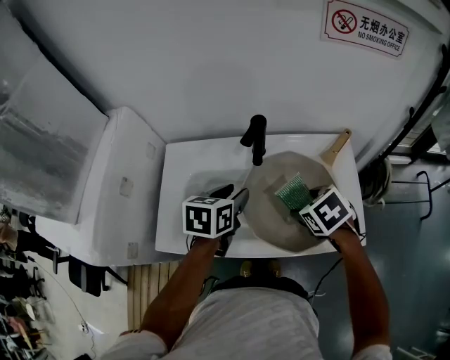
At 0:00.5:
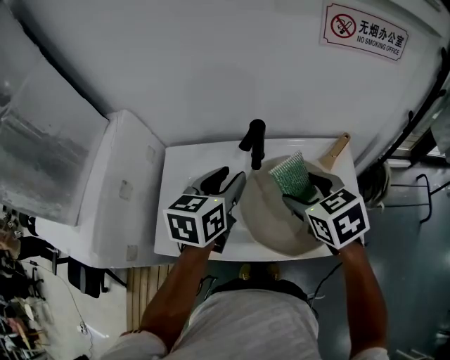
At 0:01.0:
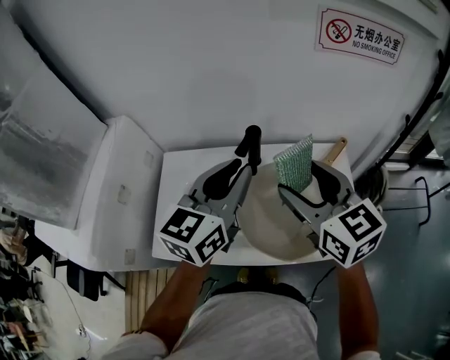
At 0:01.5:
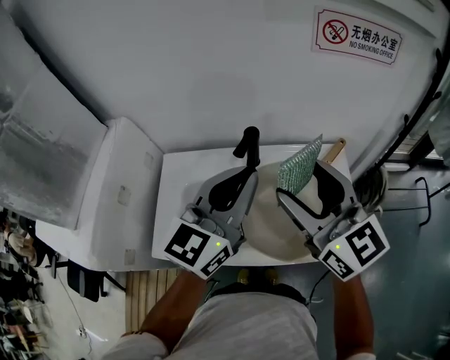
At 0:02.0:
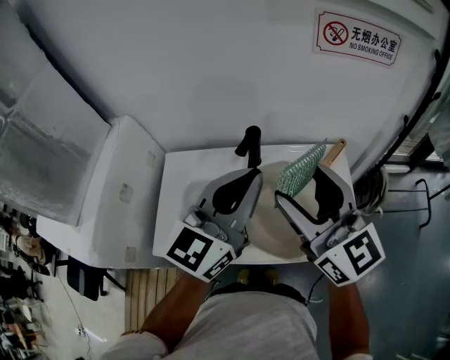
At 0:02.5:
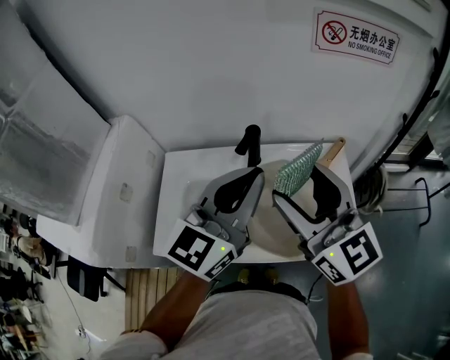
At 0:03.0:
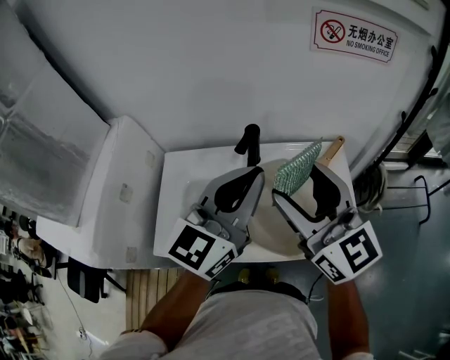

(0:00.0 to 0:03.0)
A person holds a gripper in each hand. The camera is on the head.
0:00.0 - 0:01.5: Both grippers travel together upward, approximately 25 cm. The right gripper tilts its fingers roughly 70 degrees upward; the left gripper points its fingers some 40 degrees further upward, and closes.
0:01.5 - 0:03.0: The grippers move only a little.

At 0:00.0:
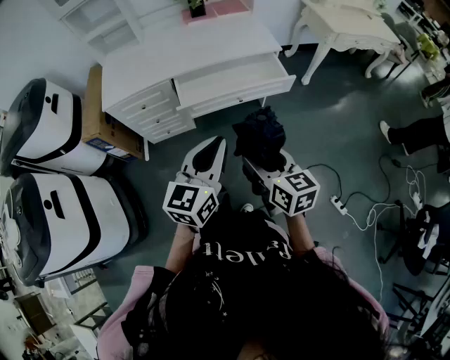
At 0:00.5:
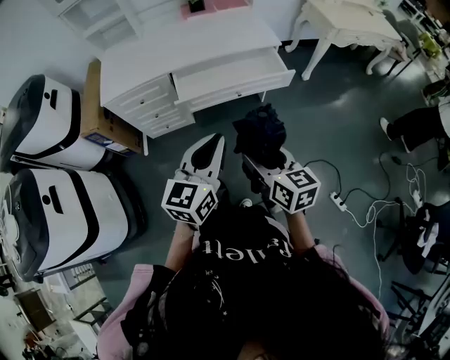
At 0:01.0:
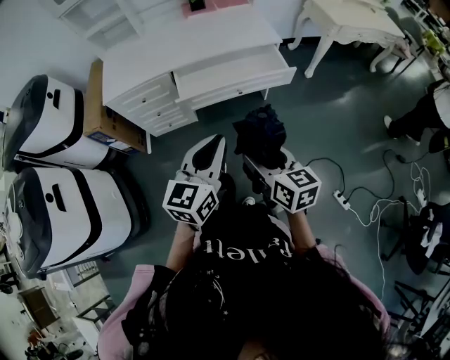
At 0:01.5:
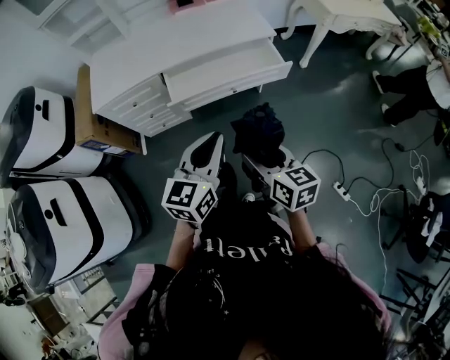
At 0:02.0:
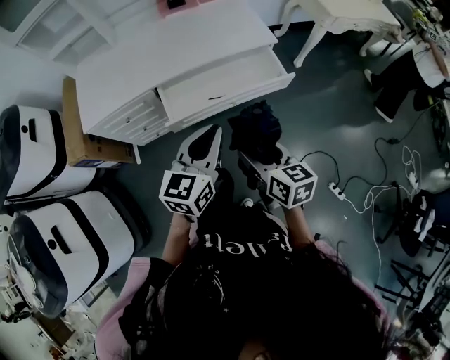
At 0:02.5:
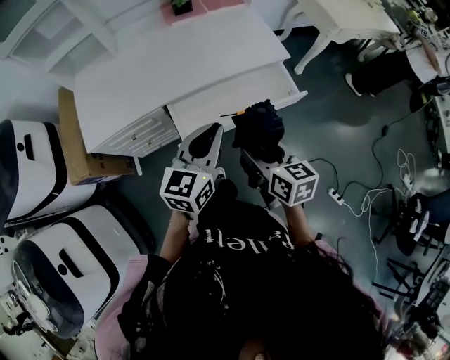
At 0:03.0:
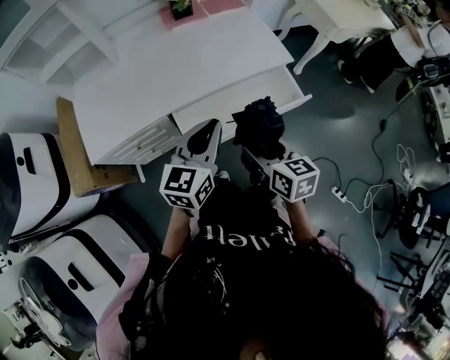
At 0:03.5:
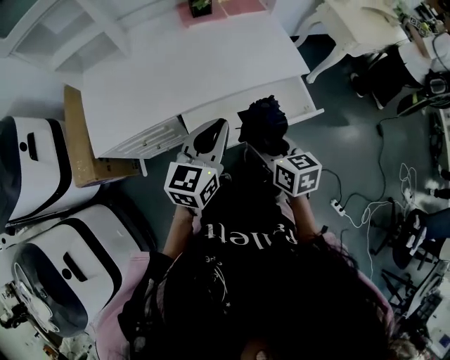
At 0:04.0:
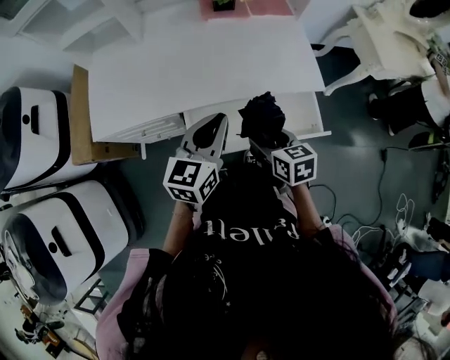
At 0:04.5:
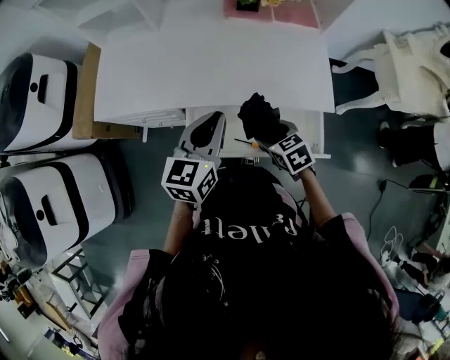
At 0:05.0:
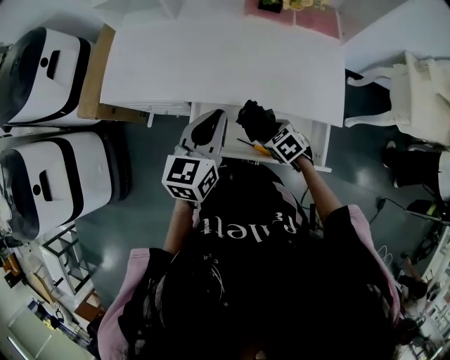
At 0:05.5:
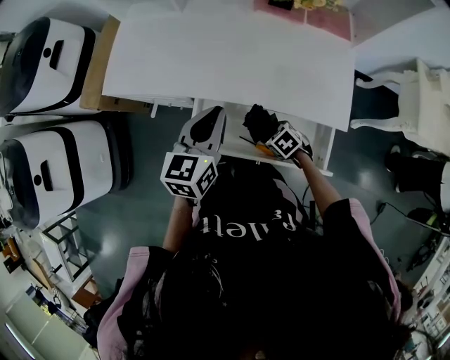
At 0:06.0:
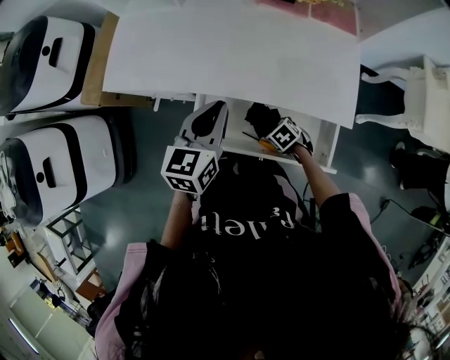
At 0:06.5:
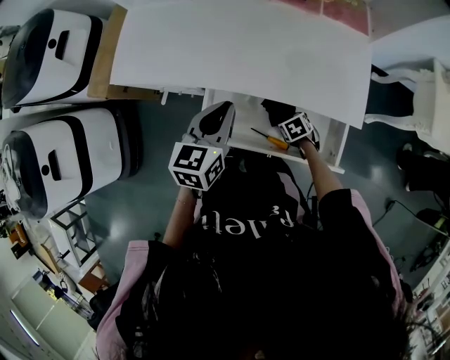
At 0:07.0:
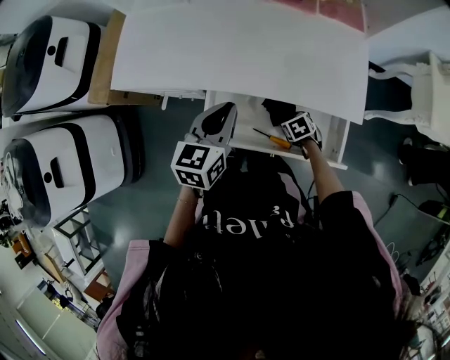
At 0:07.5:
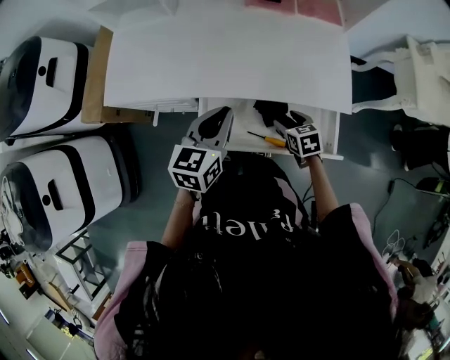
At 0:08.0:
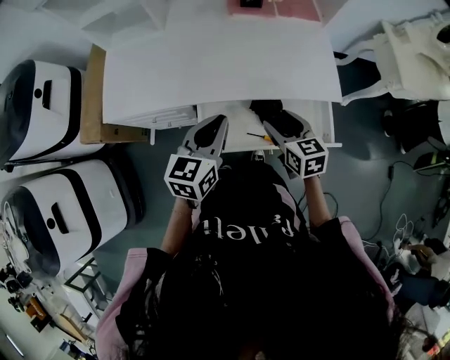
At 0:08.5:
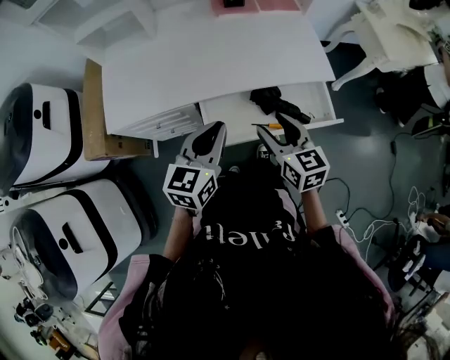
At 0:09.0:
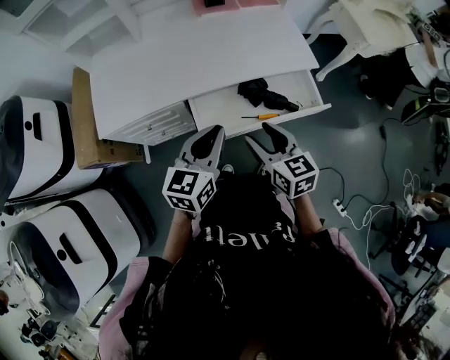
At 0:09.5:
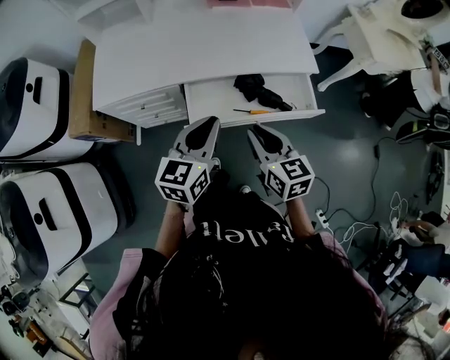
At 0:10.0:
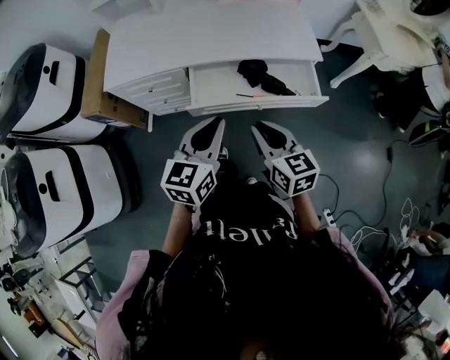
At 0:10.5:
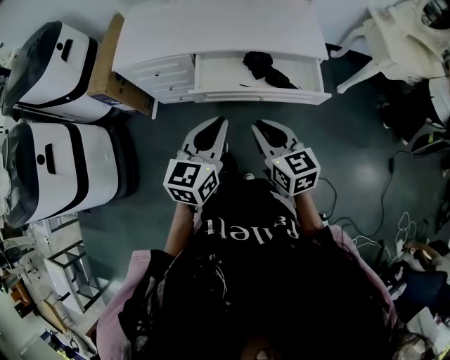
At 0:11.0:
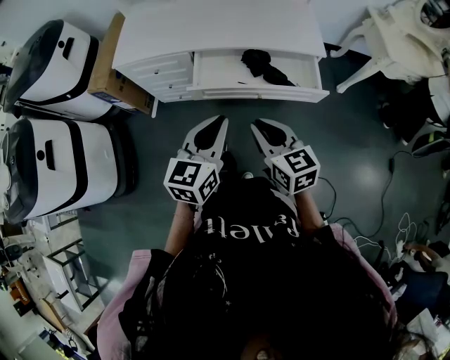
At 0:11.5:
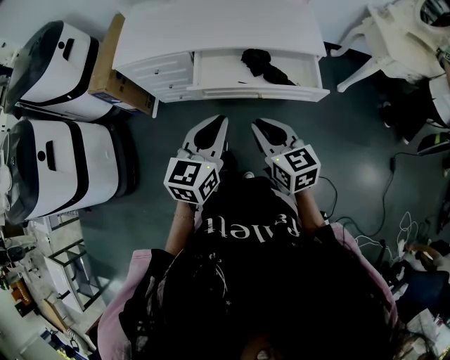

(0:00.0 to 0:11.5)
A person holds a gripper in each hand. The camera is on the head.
0:00.0 - 0:02.0: Both grippers travel together forward, approximately 15 cm.
0:02.0 - 0:04.0: The two grippers go roughly 25 cm forward. The right gripper swivels some 20 degrees.
0:04.0 - 0:06.0: The left gripper ends up approximately 10 cm from where it was, and changes its angle by roughly 20 degrees, while the right gripper shifts about 25 cm downward, and points its fingers approximately 30 degrees further downward.
0:06.0 - 0:07.5: The right gripper moves upward, about 10 cm, and turns by some 40 degrees.
0:07.5 - 0:09.5: The right gripper travels backward, upward and to the left by roughly 35 cm, changes its angle by some 30 degrees, and closes. The left gripper shifts some 20 cm backward.
0:09.5 - 0:11.5: The grippers both shift backward by about 15 cm.

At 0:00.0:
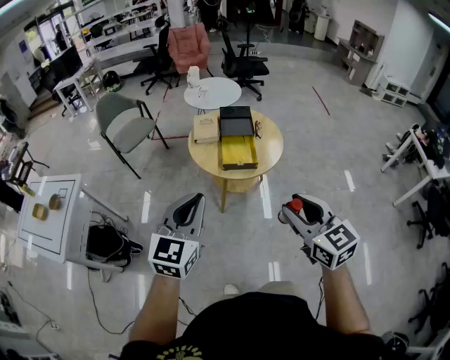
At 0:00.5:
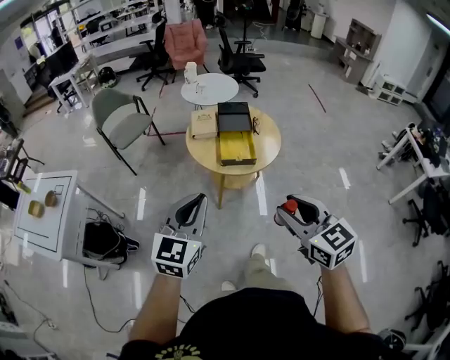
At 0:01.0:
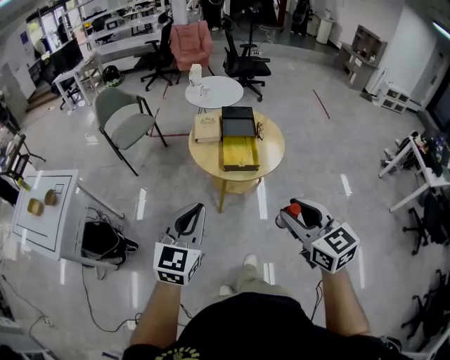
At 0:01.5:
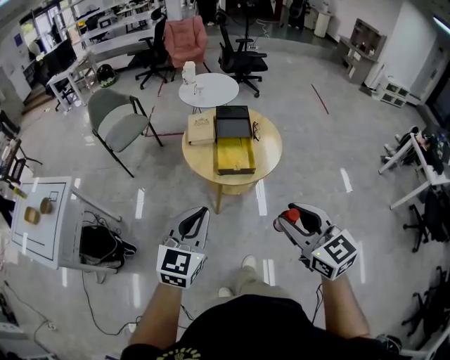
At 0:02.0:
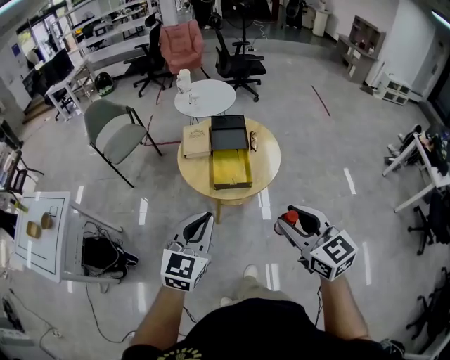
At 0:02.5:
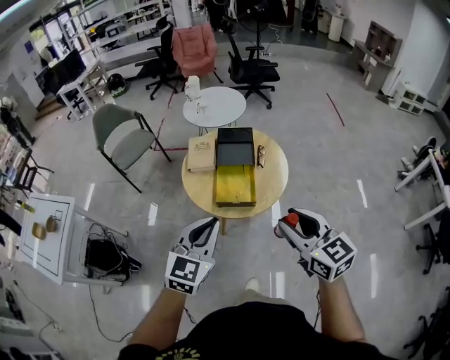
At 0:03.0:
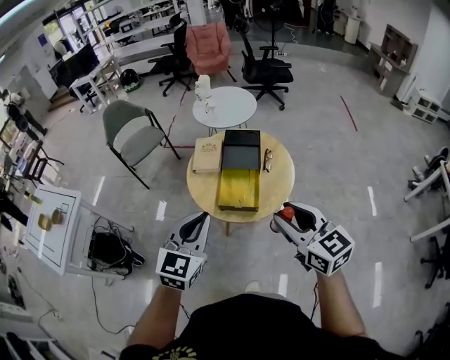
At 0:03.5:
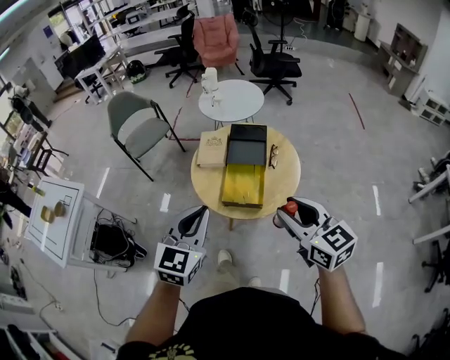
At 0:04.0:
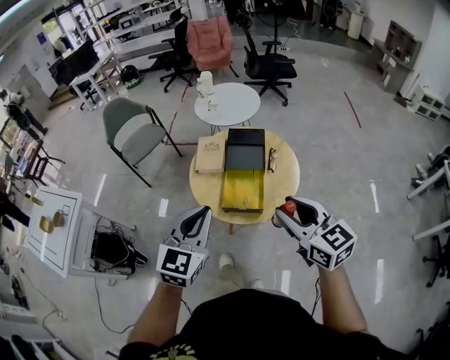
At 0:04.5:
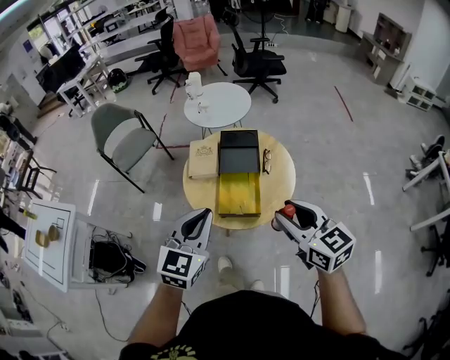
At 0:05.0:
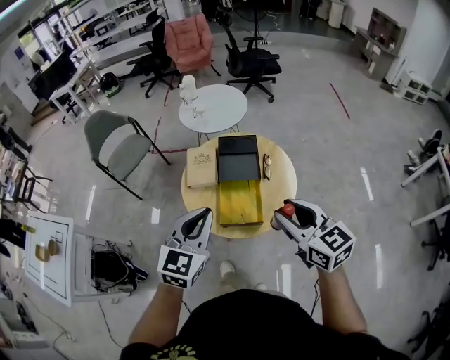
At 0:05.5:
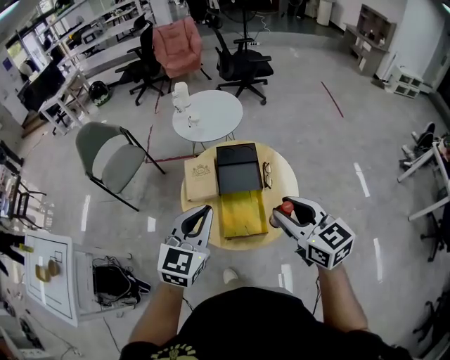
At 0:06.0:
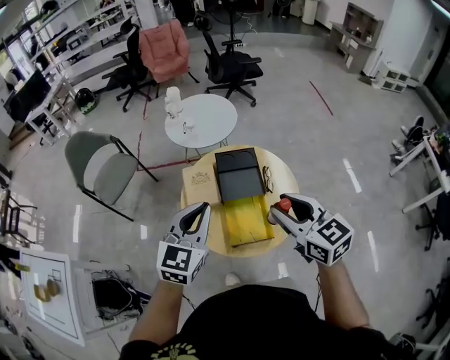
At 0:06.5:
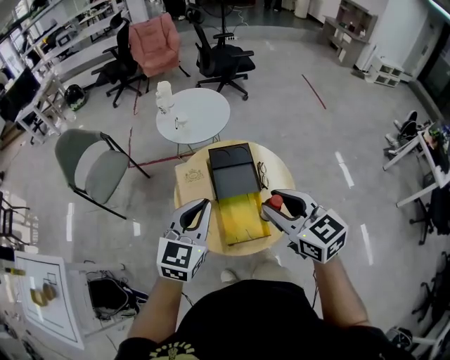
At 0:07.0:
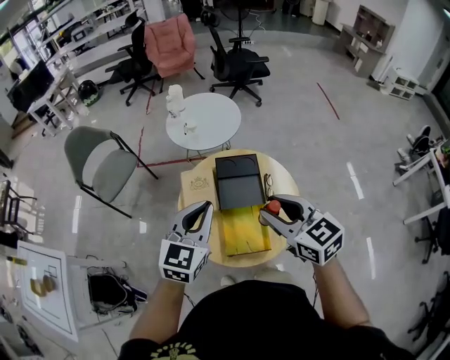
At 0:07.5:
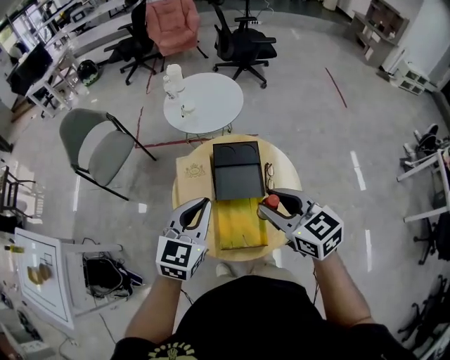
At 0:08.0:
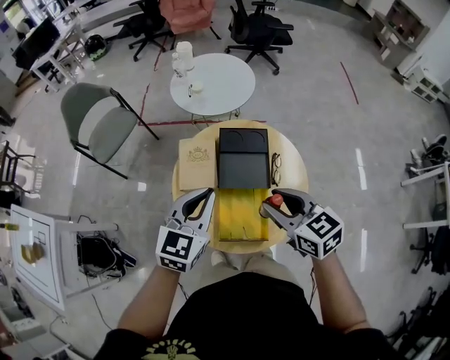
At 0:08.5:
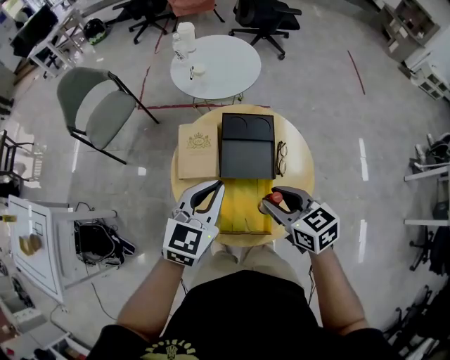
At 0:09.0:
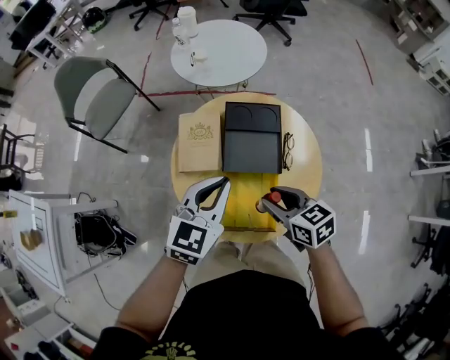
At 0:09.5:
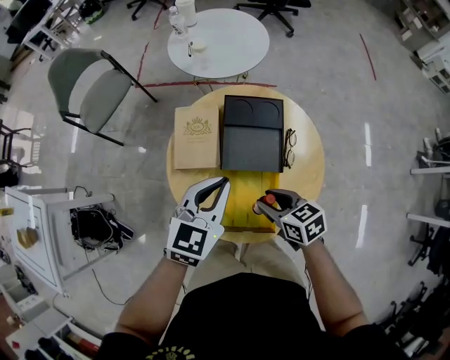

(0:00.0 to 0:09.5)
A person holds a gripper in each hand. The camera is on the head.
0:00.0 - 0:02.0: The right gripper shifts roughly 10 cm forward. The left gripper is displaced forward, to the right and downward by some 15 cm.
0:02.0 - 0:04.0: The two grippers go approximately 15 cm forward.
0:04.0 - 0:05.5: The two grippers go roughly 15 cm forward.
0:05.5 - 0:07.5: Both grippers move forward and downward, roughly 15 cm.
0:07.5 - 0:09.5: The left gripper goes roughly 15 cm downward; the right gripper travels downward by roughly 25 cm, and swivels some 30 degrees.

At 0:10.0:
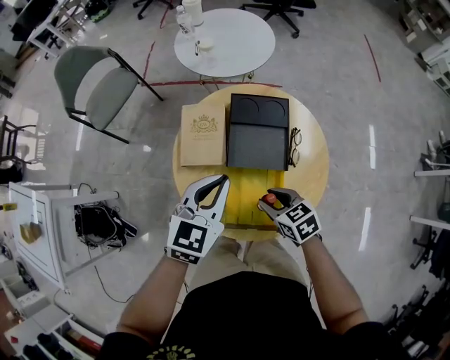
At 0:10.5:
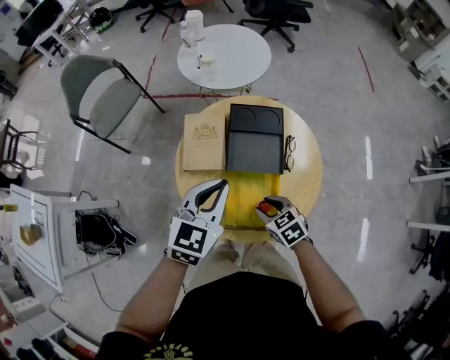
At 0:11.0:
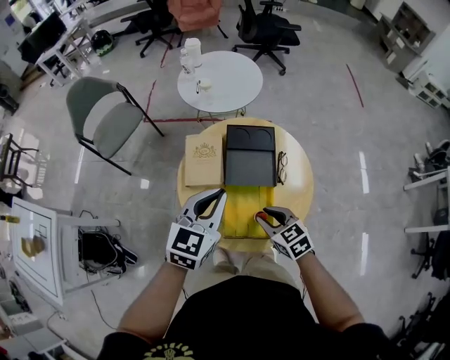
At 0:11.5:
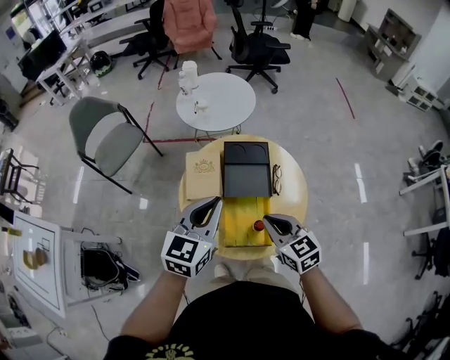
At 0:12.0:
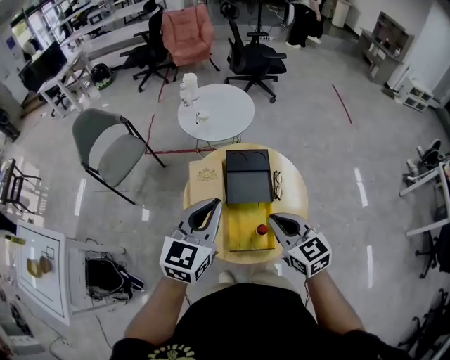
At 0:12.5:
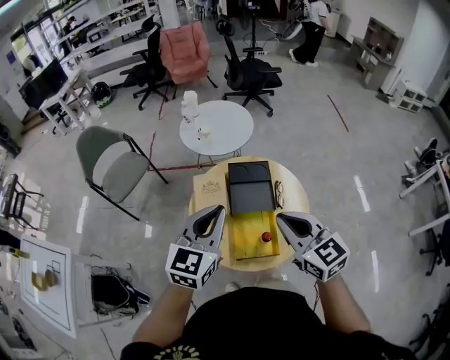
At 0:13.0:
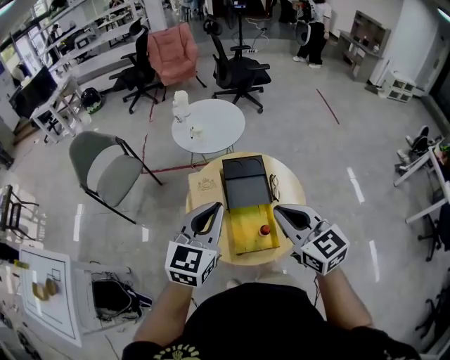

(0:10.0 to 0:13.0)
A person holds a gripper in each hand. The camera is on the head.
0:10.0 - 0:11.5: The two grippers go about 15 cm upward. The right gripper rotates about 30 degrees, and closes up.
0:11.5 - 0:13.0: The right gripper shifts approximately 15 cm upward. Meanwhile the left gripper heads upward, covering about 5 cm.
